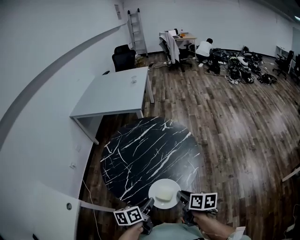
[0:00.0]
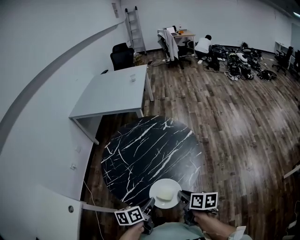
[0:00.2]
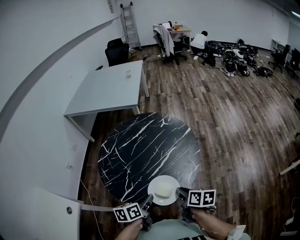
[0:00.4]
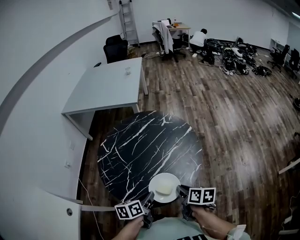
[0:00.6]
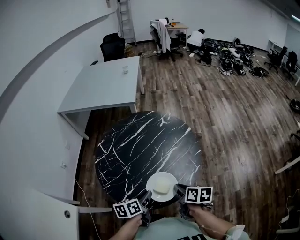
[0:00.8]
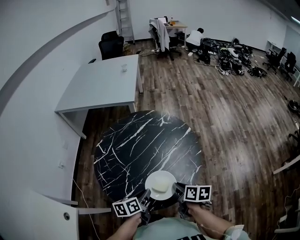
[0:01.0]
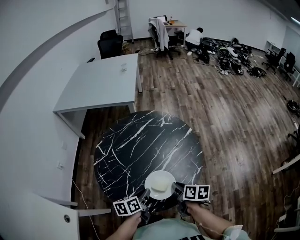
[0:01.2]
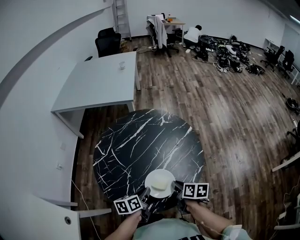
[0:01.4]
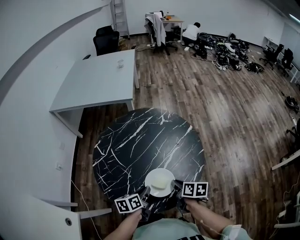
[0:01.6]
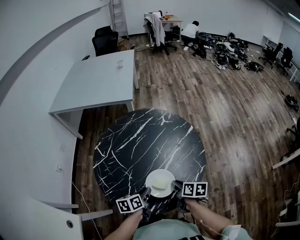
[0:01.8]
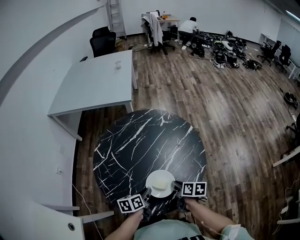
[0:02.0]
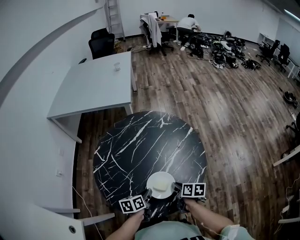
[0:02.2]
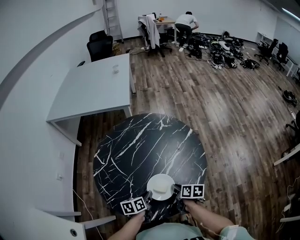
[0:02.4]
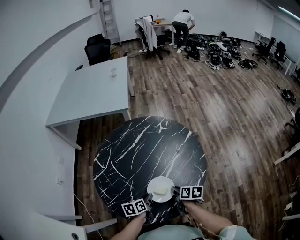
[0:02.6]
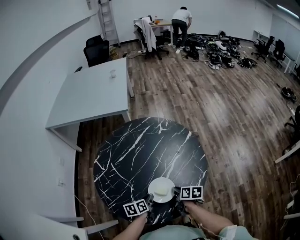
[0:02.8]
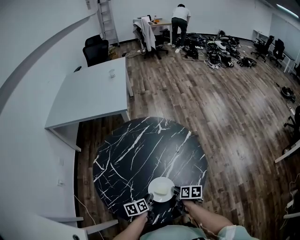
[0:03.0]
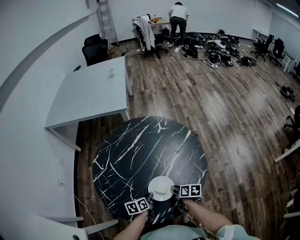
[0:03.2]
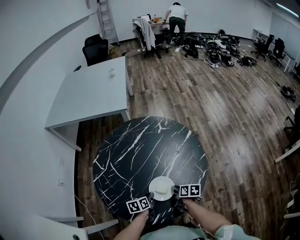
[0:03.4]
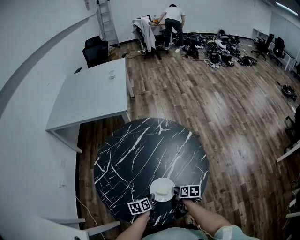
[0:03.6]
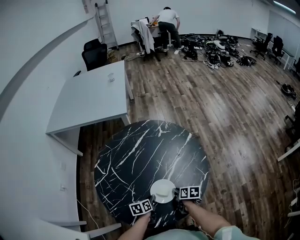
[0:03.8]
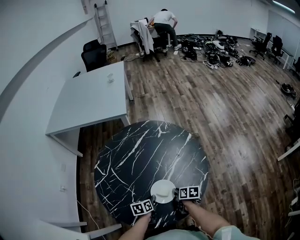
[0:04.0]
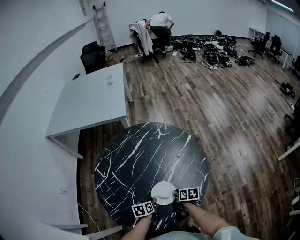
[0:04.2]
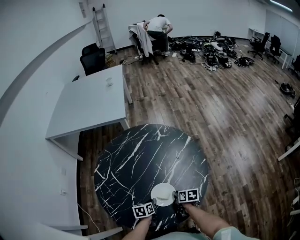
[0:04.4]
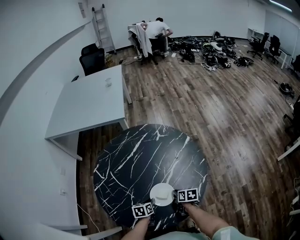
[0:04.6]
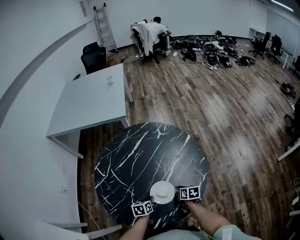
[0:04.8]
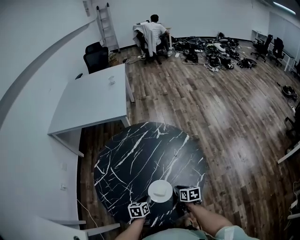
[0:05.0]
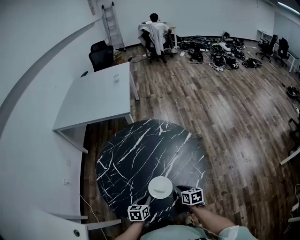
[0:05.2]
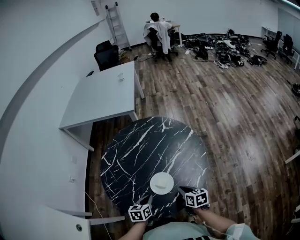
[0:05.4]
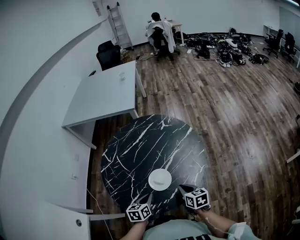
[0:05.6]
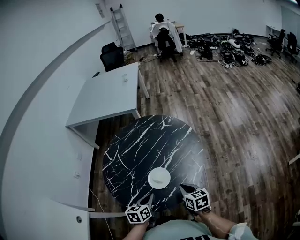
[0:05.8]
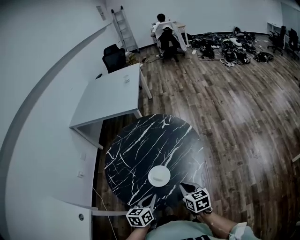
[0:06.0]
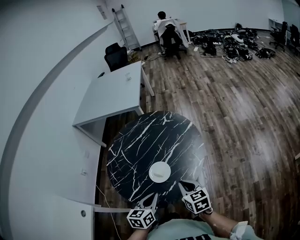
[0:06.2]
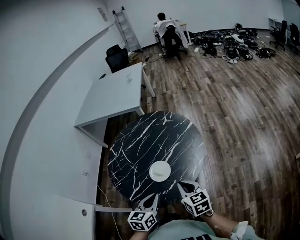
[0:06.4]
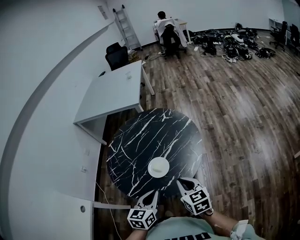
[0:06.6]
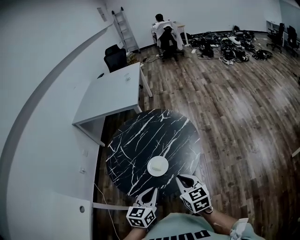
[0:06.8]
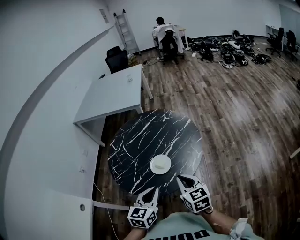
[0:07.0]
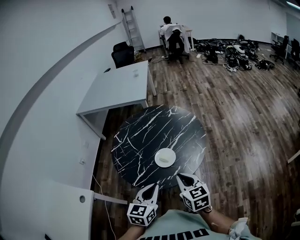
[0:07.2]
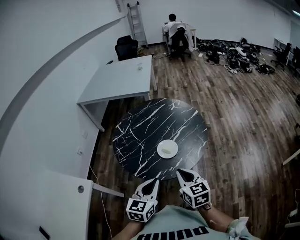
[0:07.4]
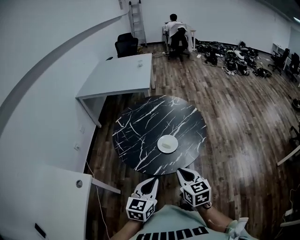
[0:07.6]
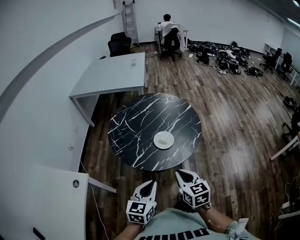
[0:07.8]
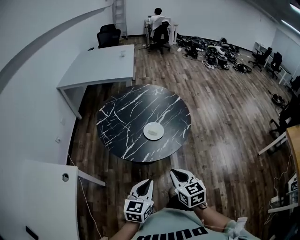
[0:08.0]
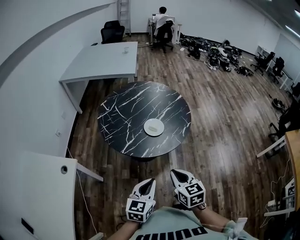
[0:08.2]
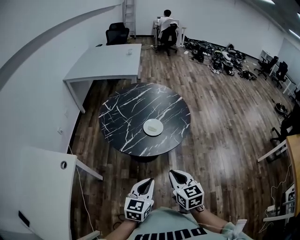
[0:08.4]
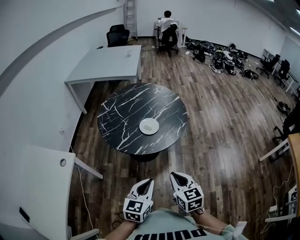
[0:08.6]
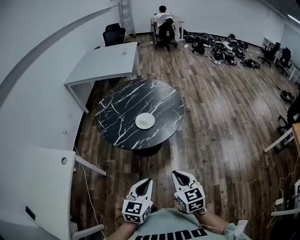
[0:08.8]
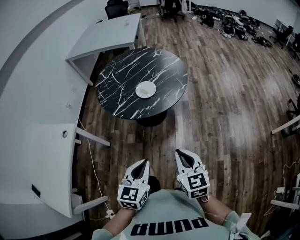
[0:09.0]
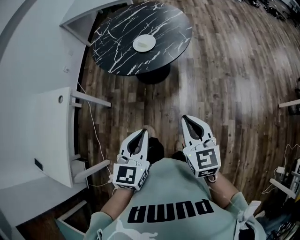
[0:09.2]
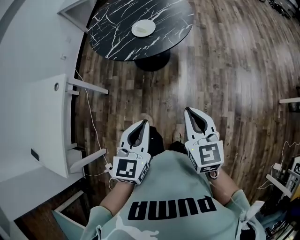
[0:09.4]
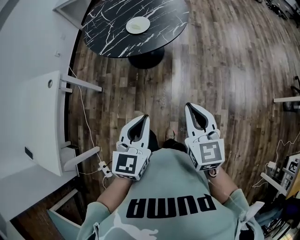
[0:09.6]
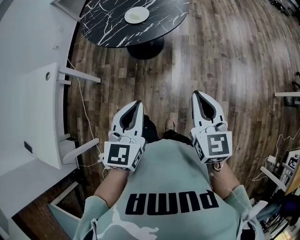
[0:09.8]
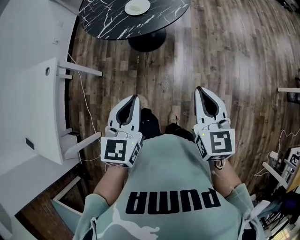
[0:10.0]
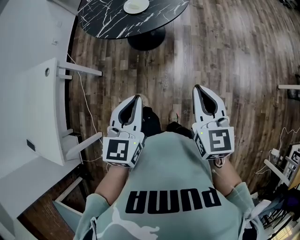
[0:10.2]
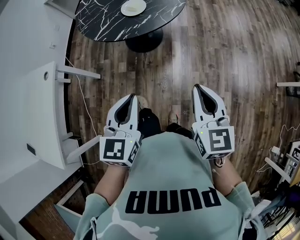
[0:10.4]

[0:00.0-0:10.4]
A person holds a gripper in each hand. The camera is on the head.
0:00.0 to 0:01.4: Both grippers travel together forward, to the left and downward, approximately 15 cm.
0:01.4 to 0:03.0: Both grippers move downward, some 10 cm.
0:03.0 to 0:04.4: The grippers both shift downward by about 5 cm.
0:04.4 to 0:06.0: The left gripper shifts approximately 25 cm upward, backward and to the right, and turns by about 20 degrees. The right gripper shifts roughly 25 cm upward and backward, and rotates about 40 degrees.
0:06.0 to 0:07.4: Both grippers travel together backward, upward and to the left, about 20 cm. The left gripper rotates approximately 20 degrees.
0:07.4 to 0:09.0: The two grippers go about 25 cm backward and to the right.
0:09.0 to 0:10.4: The right gripper travels to the right by about 5 cm.

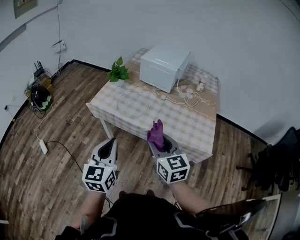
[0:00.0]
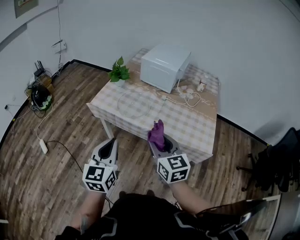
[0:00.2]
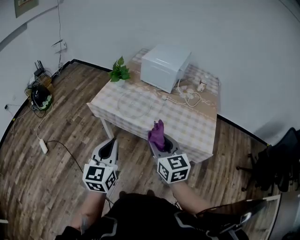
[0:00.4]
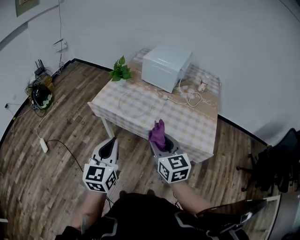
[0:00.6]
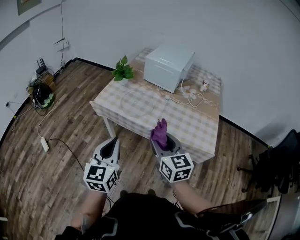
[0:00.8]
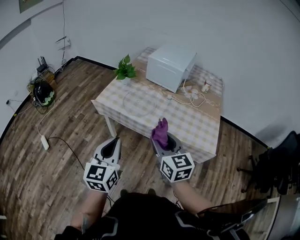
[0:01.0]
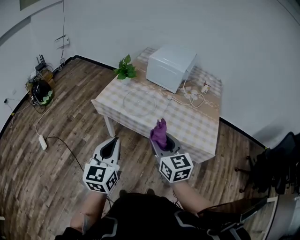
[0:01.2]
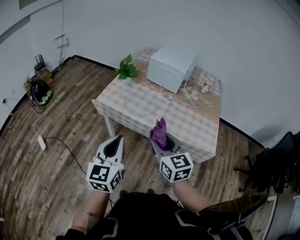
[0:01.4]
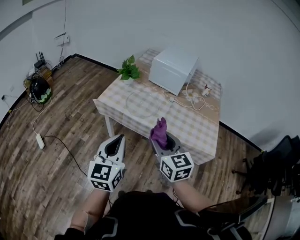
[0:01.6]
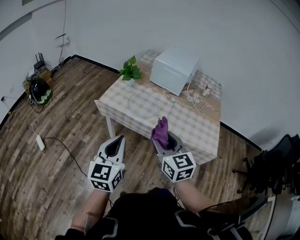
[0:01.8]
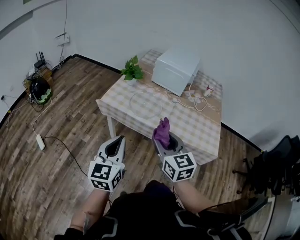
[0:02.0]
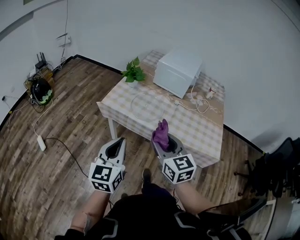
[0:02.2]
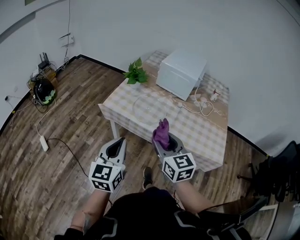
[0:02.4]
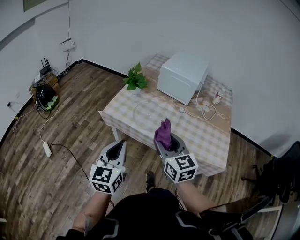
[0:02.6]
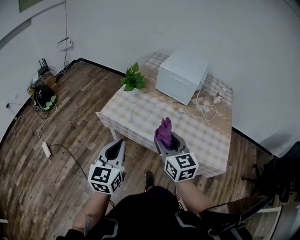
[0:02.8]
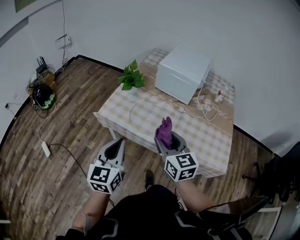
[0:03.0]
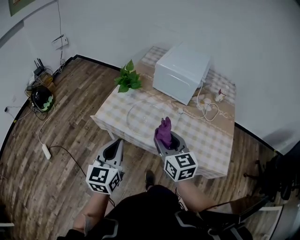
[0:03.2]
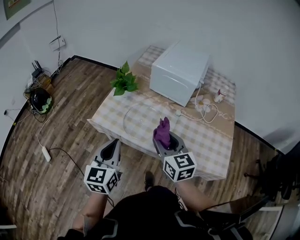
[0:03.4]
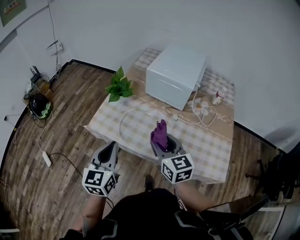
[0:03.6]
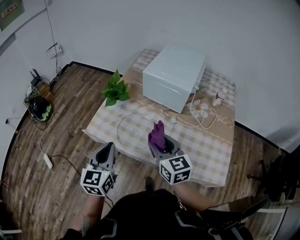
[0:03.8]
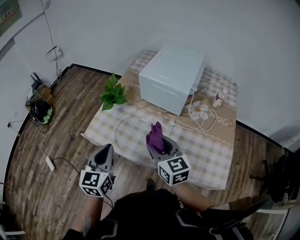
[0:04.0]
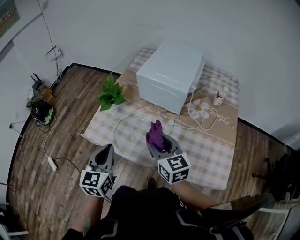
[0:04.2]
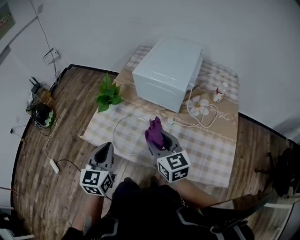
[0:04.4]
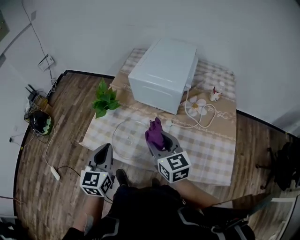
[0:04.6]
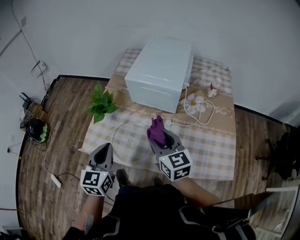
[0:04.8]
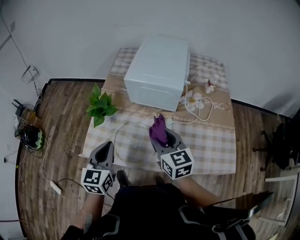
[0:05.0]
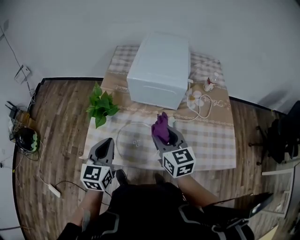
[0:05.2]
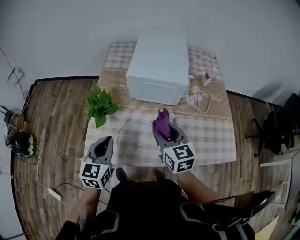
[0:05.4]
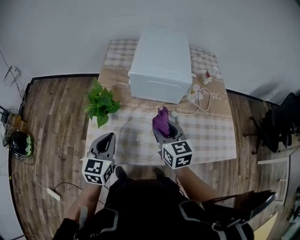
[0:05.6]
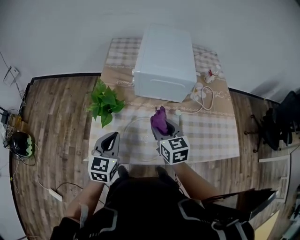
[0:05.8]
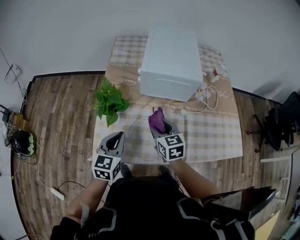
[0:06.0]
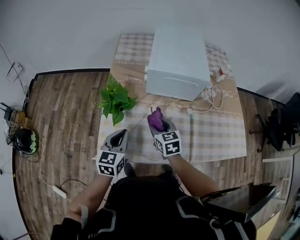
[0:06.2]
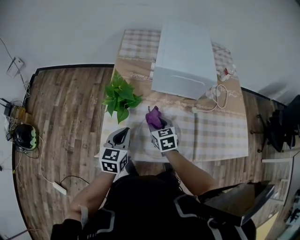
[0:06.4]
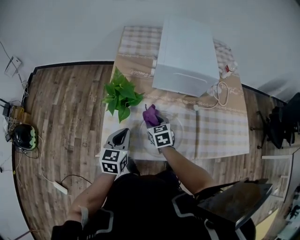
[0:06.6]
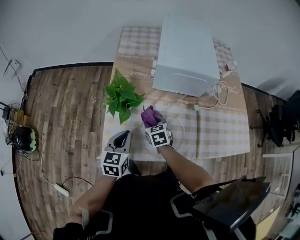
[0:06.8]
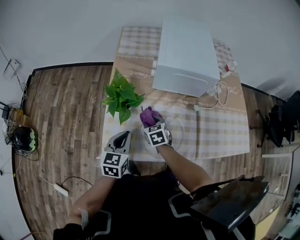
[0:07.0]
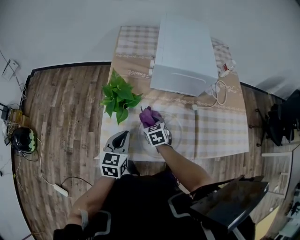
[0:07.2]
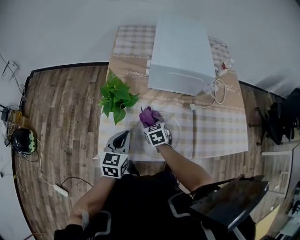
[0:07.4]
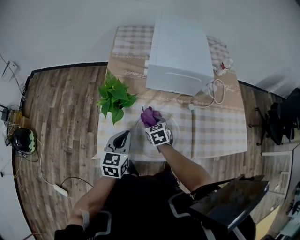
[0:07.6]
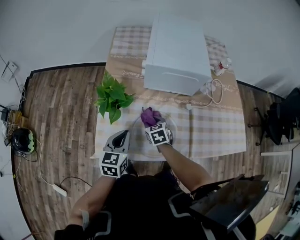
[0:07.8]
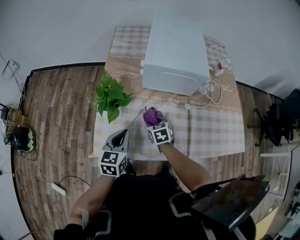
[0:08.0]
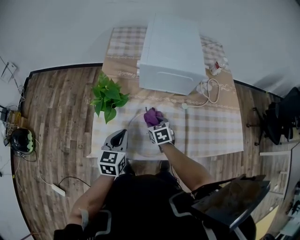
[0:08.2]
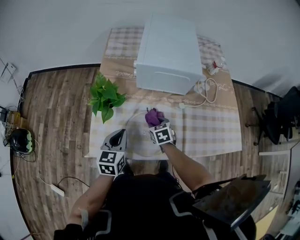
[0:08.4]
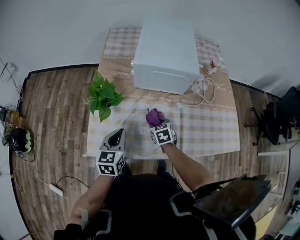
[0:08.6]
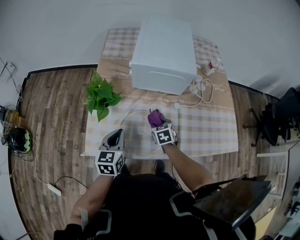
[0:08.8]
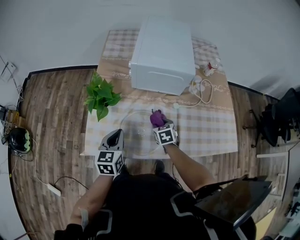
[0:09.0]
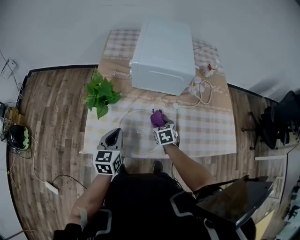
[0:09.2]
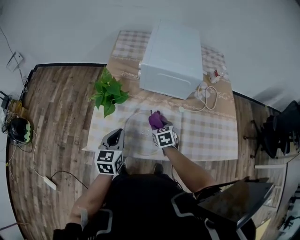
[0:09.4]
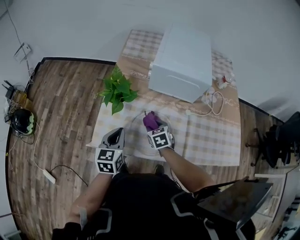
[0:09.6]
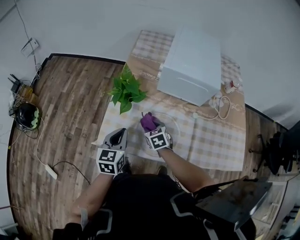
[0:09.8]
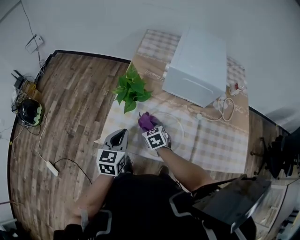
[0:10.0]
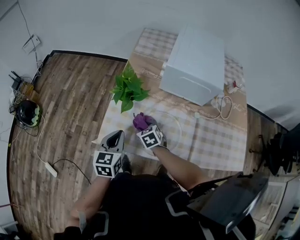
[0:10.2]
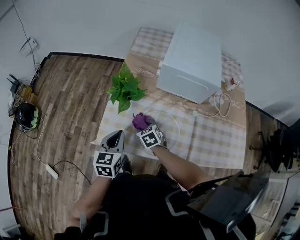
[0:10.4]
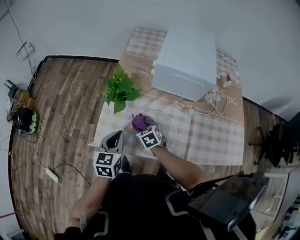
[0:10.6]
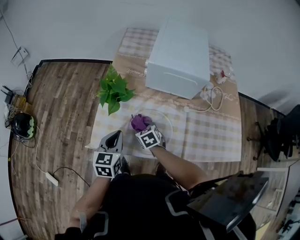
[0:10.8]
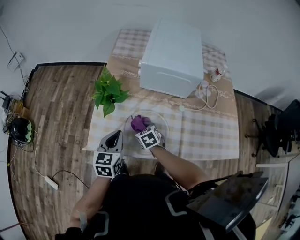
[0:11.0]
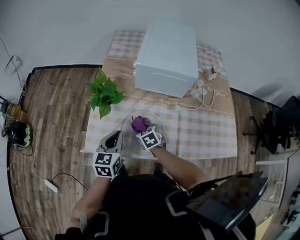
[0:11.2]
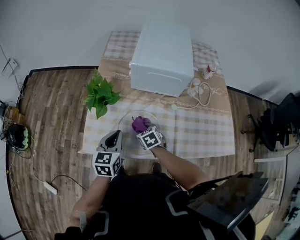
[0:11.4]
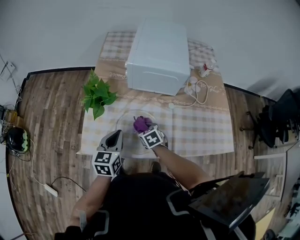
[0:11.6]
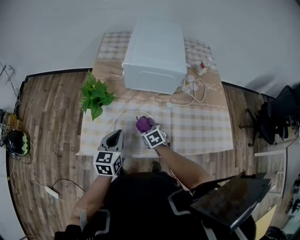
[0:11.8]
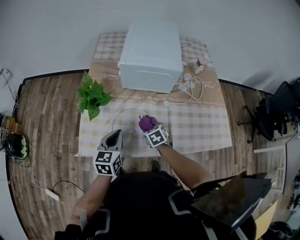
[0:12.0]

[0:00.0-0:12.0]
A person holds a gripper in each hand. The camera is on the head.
0:00.0 to 0:01.6: Both grippers move to the left, some 5 cm.
0:01.6 to 0:03.0: The two grippers go approximately 15 cm forward.
0:03.0 to 0:04.4: The grippers both shift forward and to the right by roughly 20 cm.
0:04.4 to 0:06.0: The right gripper moves some 20 cm, and turns by about 30 degrees. Meanwhile the left gripper shifts by roughly 20 cm, and turns by approximately 30 degrees.
0:06.0 to 0:07.6: The right gripper travels downward by about 15 cm, while the left gripper moves downward, roughly 5 cm.
0:07.6 to 0:09.0: The right gripper heads to the right, covering roughly 15 cm.
0:09.0 to 0:10.4: The left gripper shifts about 10 cm to the left. The right gripper moves to the left, approximately 20 cm, and rotates roughly 20 degrees.
0:10.4 to 0:12.0: The right gripper shifts some 15 cm to the right; the left gripper moves to the right, some 10 cm.

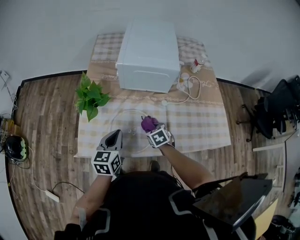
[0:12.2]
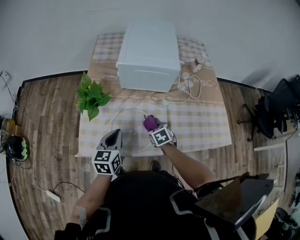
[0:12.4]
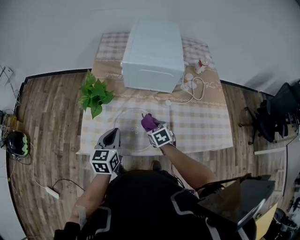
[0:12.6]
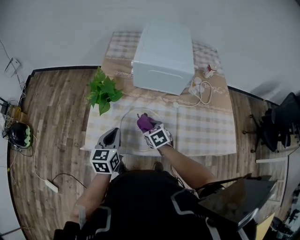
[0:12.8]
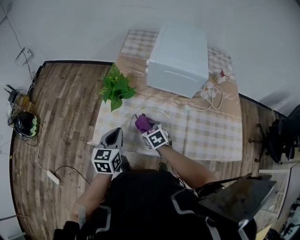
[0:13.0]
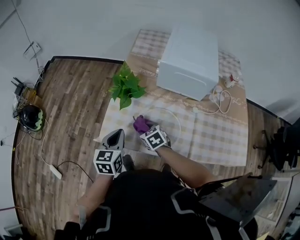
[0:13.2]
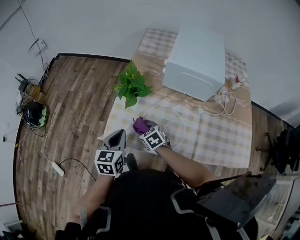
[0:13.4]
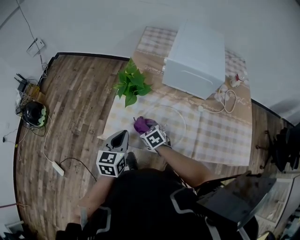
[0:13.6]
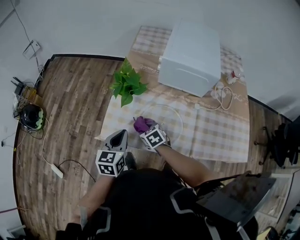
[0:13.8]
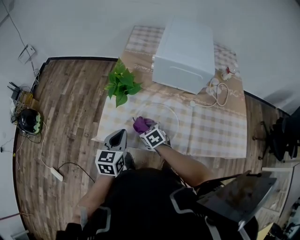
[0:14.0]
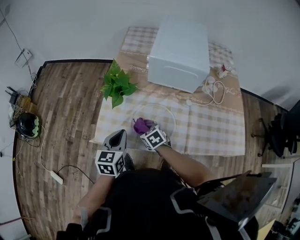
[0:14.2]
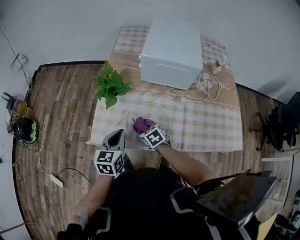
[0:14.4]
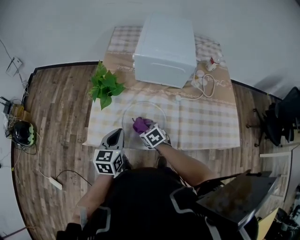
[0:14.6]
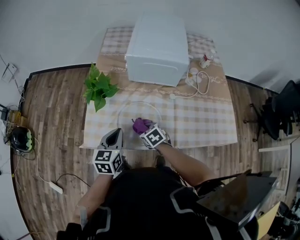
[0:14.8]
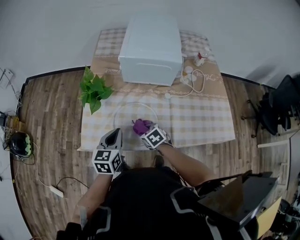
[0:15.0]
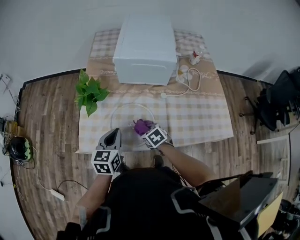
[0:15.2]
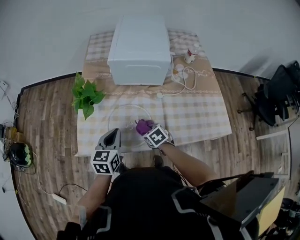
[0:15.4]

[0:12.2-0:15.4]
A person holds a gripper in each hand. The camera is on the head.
0:12.2 to 0:13.8: The right gripper shifts by approximately 20 cm, and changes its angle by some 20 degrees; the left gripper ends up roughly 10 cm from where it was.
0:13.8 to 0:15.4: The grippers both shift to the right by approximately 15 cm.
